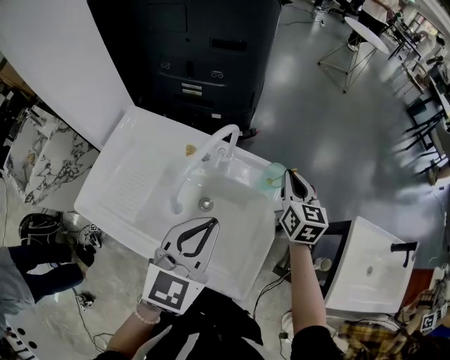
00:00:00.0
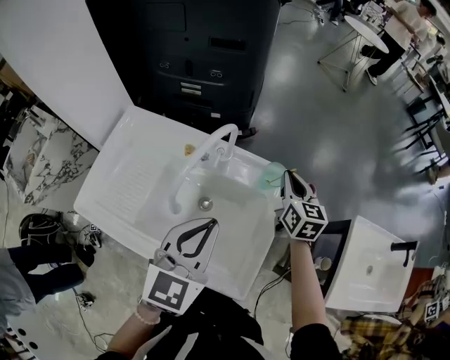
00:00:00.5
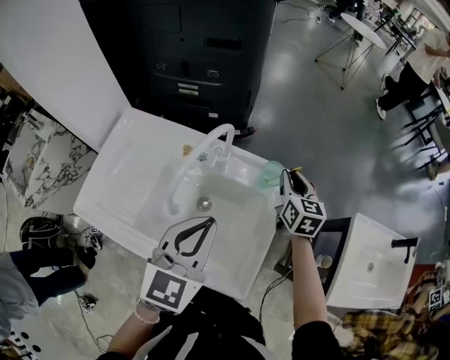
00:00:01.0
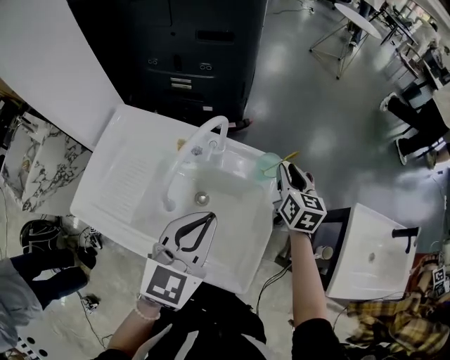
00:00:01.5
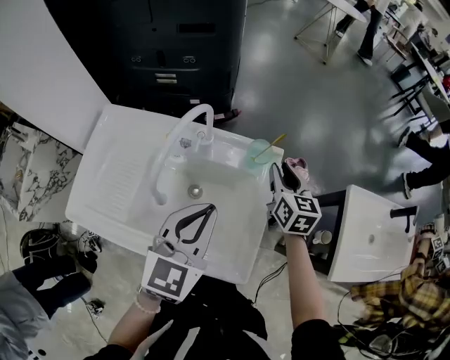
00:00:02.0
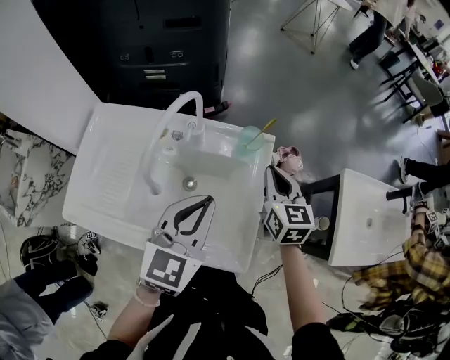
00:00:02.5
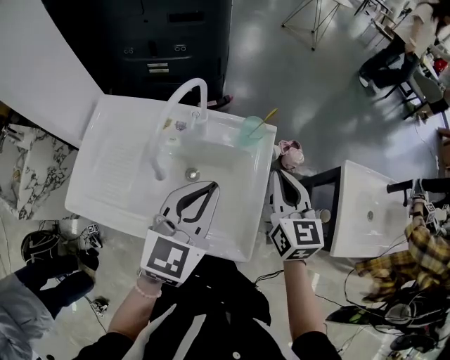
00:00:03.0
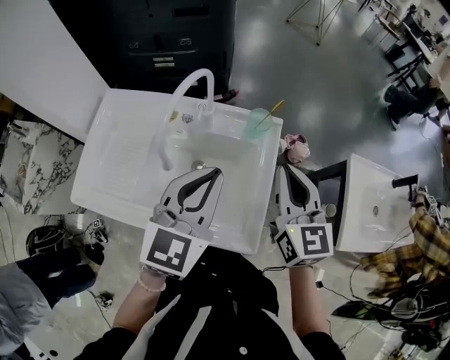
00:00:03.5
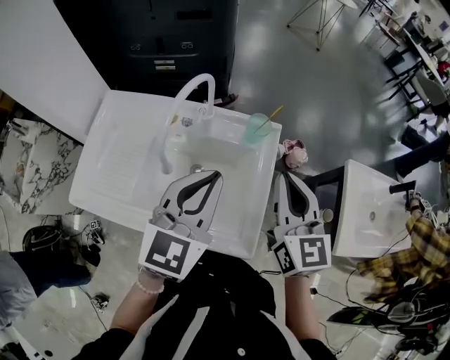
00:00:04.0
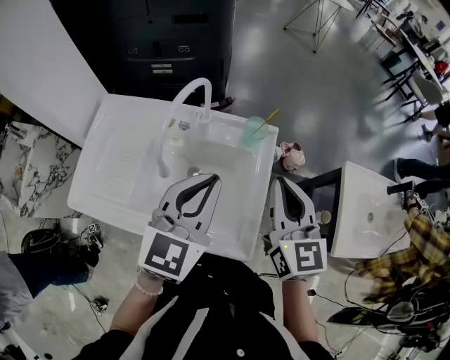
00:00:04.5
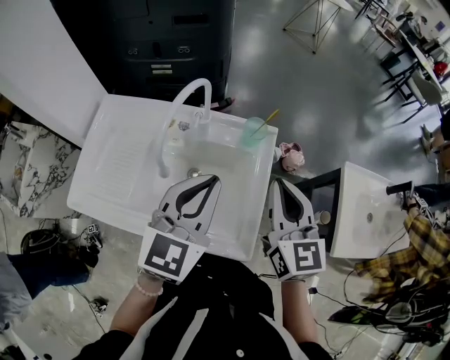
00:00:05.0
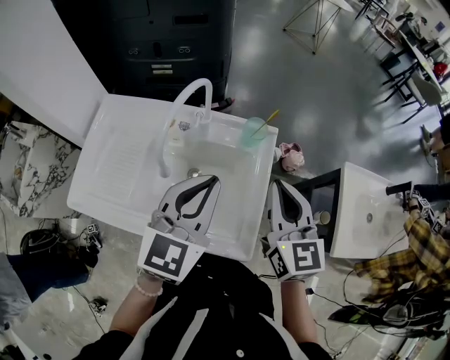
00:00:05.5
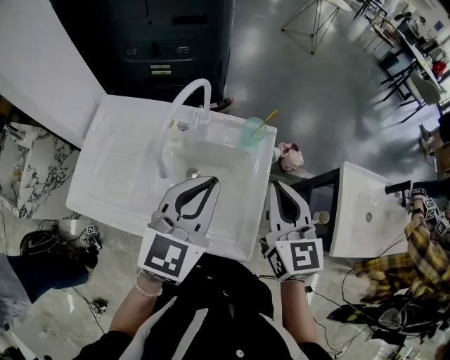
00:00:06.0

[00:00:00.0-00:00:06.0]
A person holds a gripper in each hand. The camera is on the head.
00:00:00.0 to 00:00:02.0: The right gripper shifts by roughly 5 cm, and opens up.
00:00:02.0 to 00:00:04.0: The right gripper is displaced backward and upward by some 20 cm, and closes.
00:00:04.0 to 00:00:06.0: The grippers stay close to where they were, moving slightly.

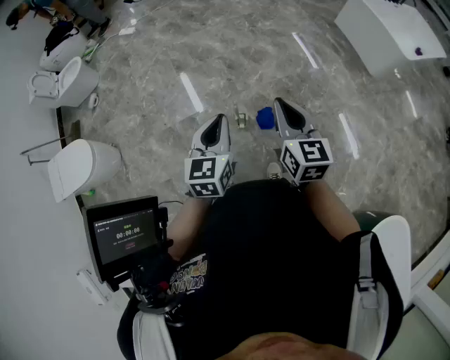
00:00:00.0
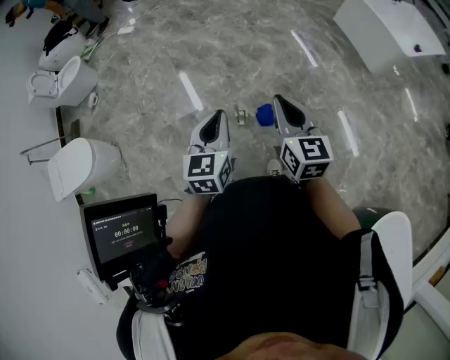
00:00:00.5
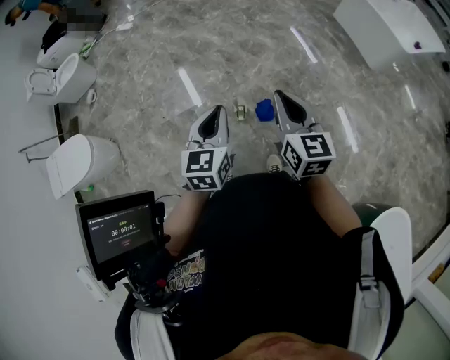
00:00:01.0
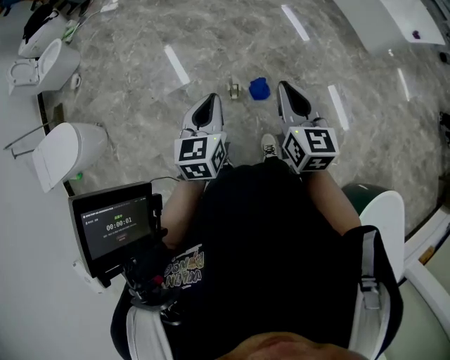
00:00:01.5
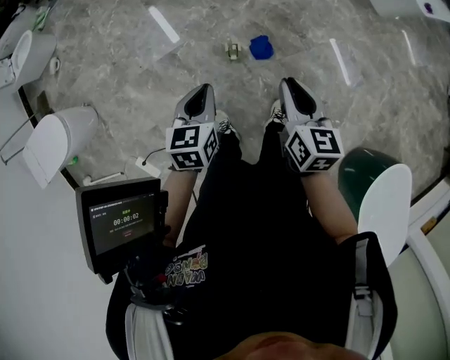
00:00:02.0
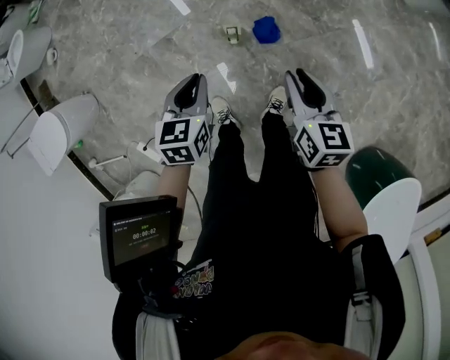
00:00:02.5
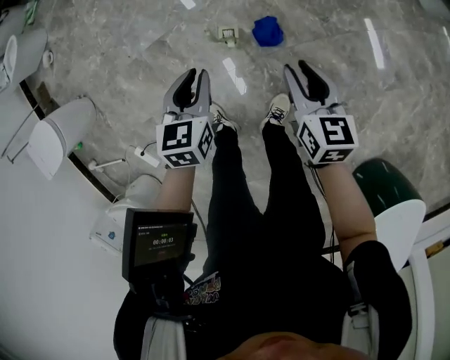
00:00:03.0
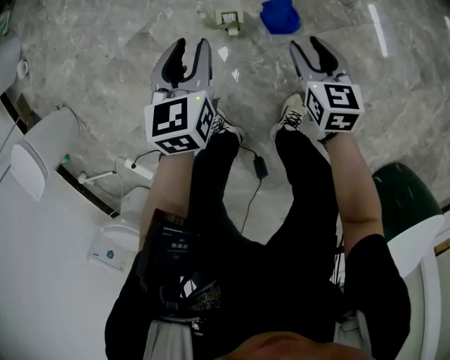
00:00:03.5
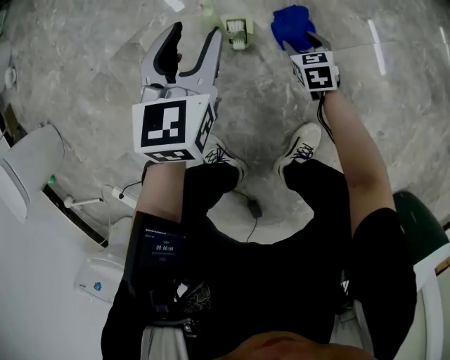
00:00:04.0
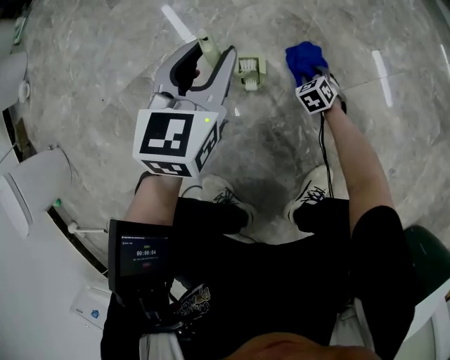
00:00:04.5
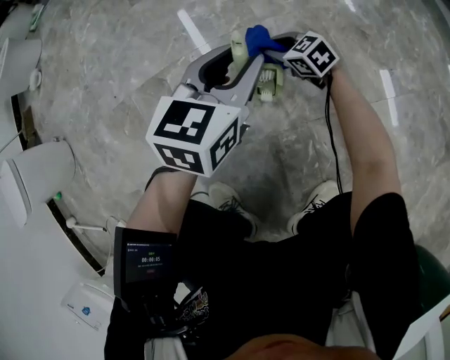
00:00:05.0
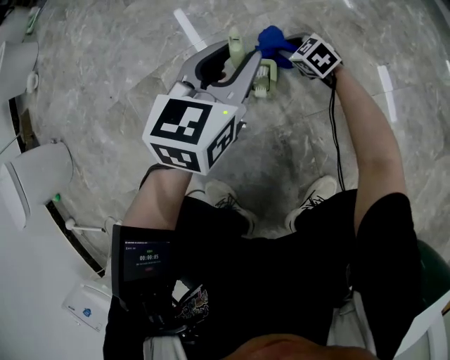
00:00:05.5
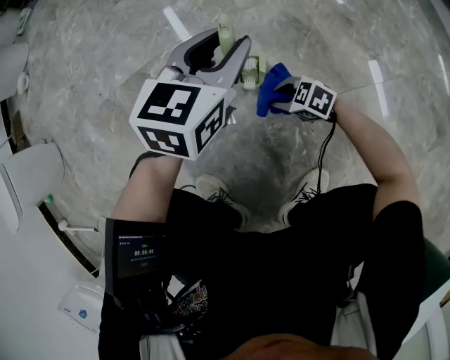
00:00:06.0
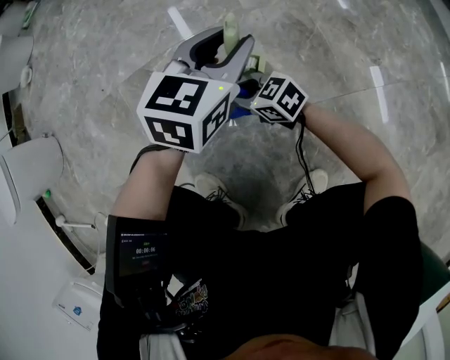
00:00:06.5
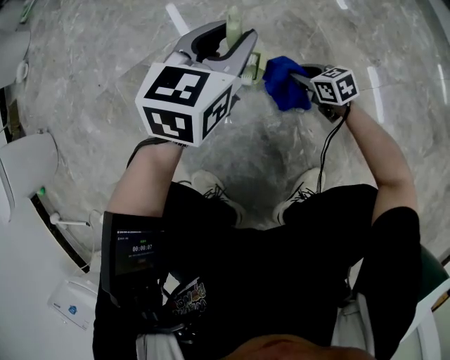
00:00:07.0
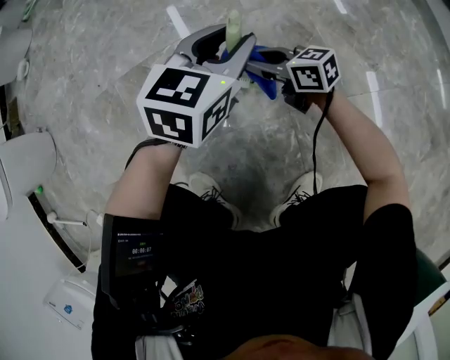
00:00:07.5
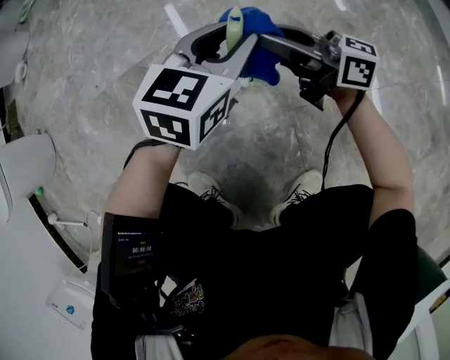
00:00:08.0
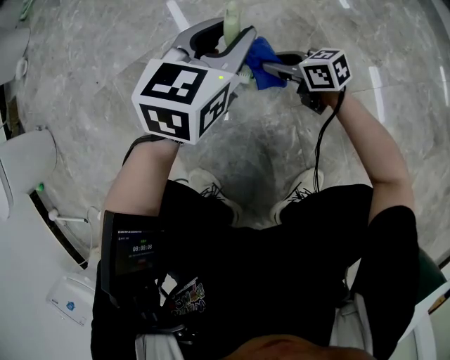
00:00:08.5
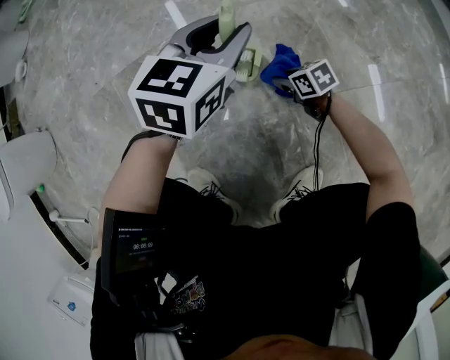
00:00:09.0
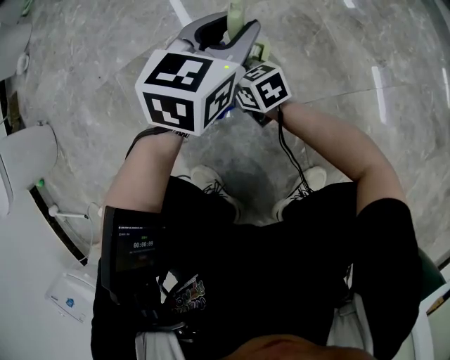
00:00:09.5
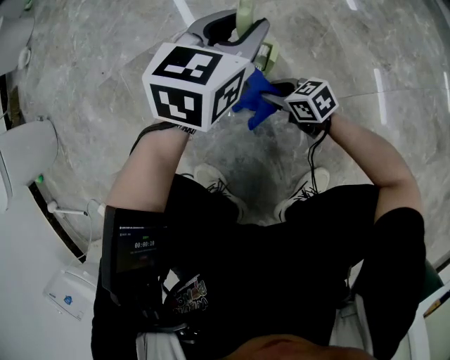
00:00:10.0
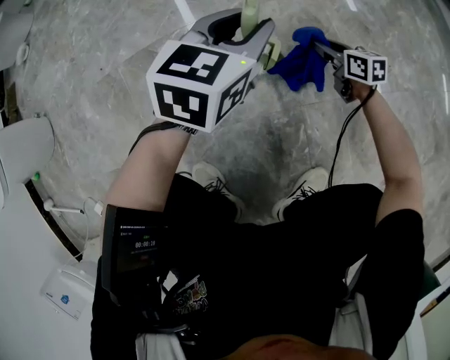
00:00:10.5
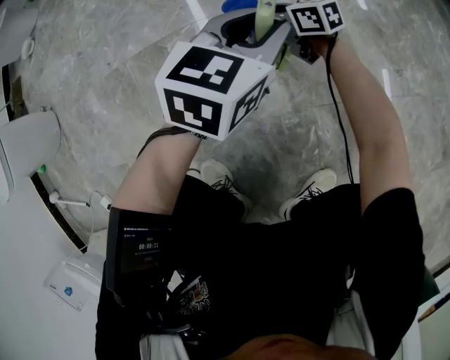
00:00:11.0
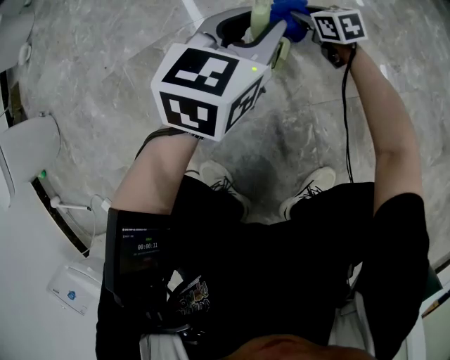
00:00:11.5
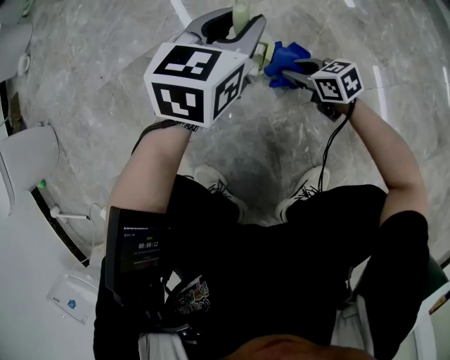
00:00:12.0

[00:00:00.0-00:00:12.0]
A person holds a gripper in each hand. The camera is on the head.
00:00:00.0 to 00:00:02.0: The left gripper moves downward and to the left, roughly 15 cm. Meanwhile the right gripper goes approximately 15 cm downward.
00:00:02.0 to 00:00:04.0: The right gripper heads downward, covering approximately 80 cm, turns by about 30 degrees, and opens, while the left gripper shifts some 50 cm downward and forward, and opens up.
00:00:04.0 to 00:00:06.0: The right gripper goes downward and returns, some 15 cm each way, swivels about 60 degrees, and closes up; the left gripper shifts by about 5 cm.
00:00:06.0 to 00:00:08.0: The right gripper goes up and down, roughly 25 cm each way, reversing 2 times, and tips its fingers upward by some 50 degrees.
00:00:08.0 to 00:00:10.0: The right gripper swings up and down, some 30 cm each way, with 2 reversals, and points its fingers some 40 degrees further downward.
00:00:10.0 to 00:00:12.0: The right gripper moves to the right, approximately 10 cm, and goes forward and returns, some 20 cm each way.

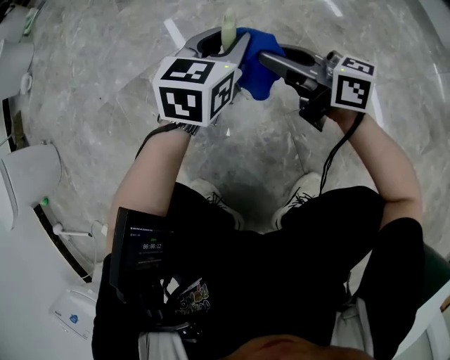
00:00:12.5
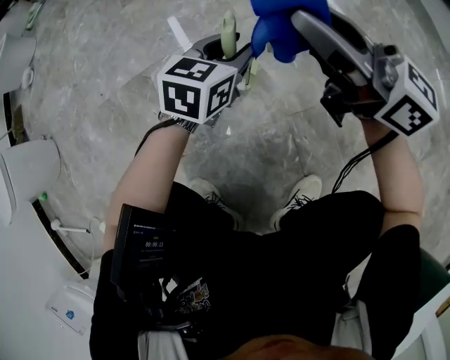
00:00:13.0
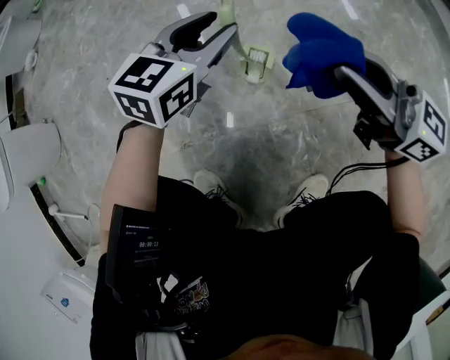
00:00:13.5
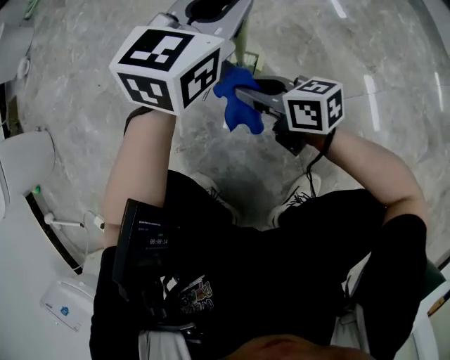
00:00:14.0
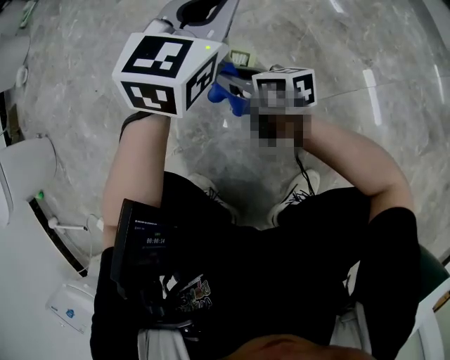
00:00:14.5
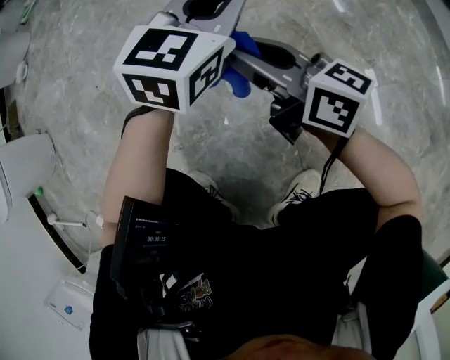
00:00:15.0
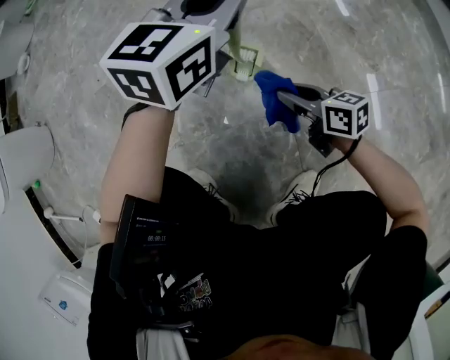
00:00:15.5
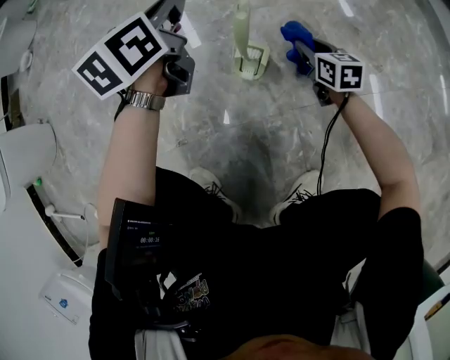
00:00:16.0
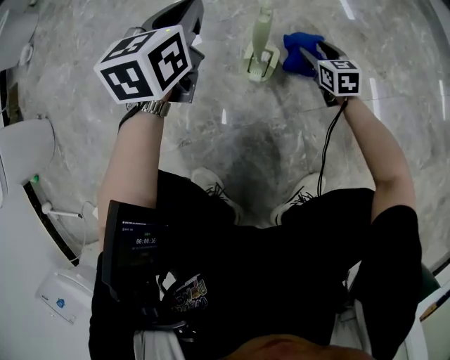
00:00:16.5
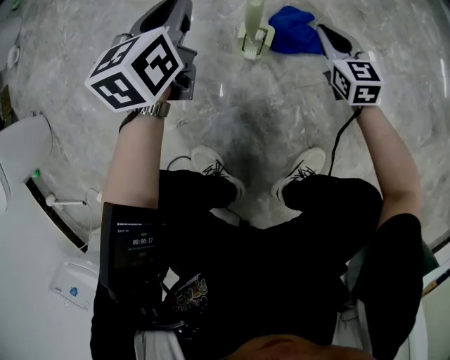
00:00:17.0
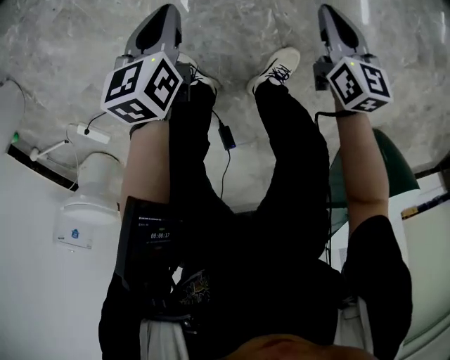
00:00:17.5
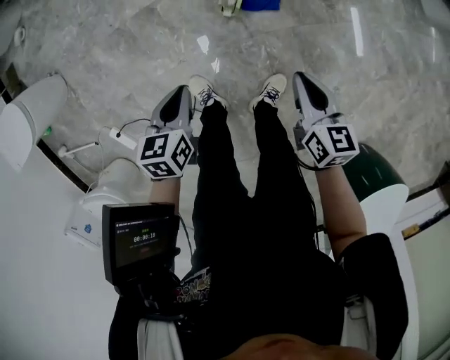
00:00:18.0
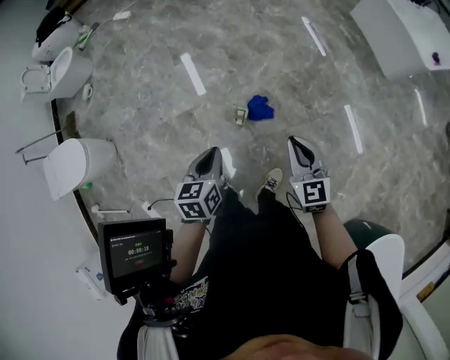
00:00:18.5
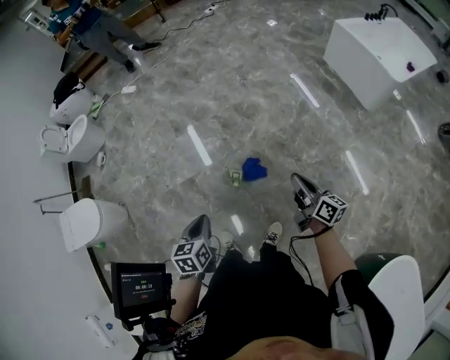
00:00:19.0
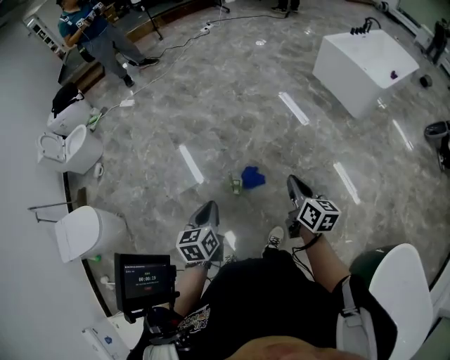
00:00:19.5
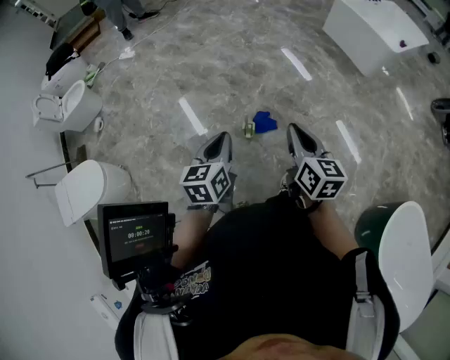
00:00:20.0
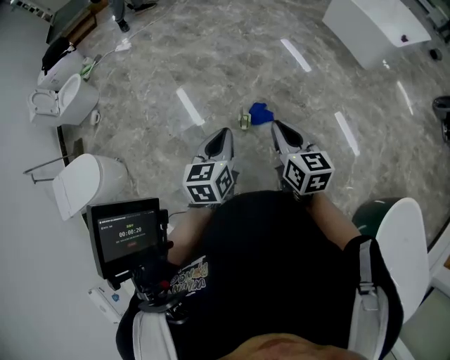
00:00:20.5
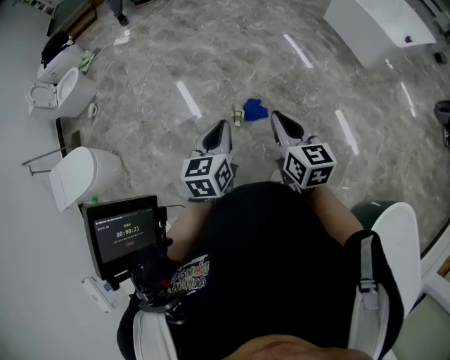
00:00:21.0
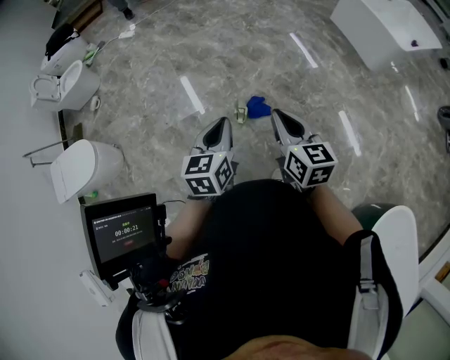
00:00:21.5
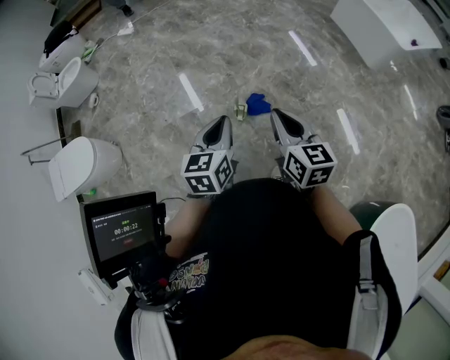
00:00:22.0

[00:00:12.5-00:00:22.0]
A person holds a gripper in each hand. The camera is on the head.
00:00:12.5 to 00:00:14.5: The left gripper is displaced upward by approximately 10 cm. Meanwhile the right gripper travels downward and to the left by roughly 15 cm, and swivels roughly 20 degrees.
00:00:14.5 to 00:00:16.5: The right gripper moves to the right and downward, about 25 cm, changes its angle by some 40 degrees, and opens up; the left gripper heads to the left and downward, covering some 15 cm, and turns by about 30 degrees.
00:00:16.5 to 00:00:18.0: The right gripper moves upward and backward, some 50 cm, turns by about 20 degrees, and closes; the left gripper shifts about 35 cm backward and upward, and changes its angle by roughly 30 degrees.
00:00:18.0 to 00:00:20.0: Both grippers move upward, approximately 40 cm. The right gripper changes its angle by about 30 degrees, while the left gripper turns by roughly 30 degrees.
00:00:20.0 to 00:00:22.0: The grippers stay close to where they were, moving slightly.
